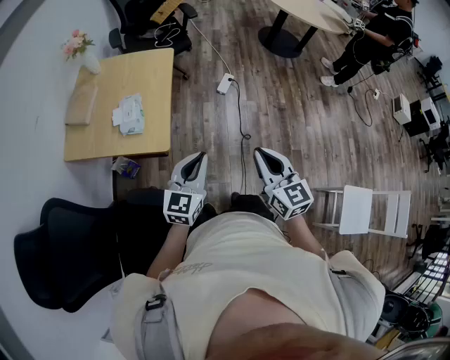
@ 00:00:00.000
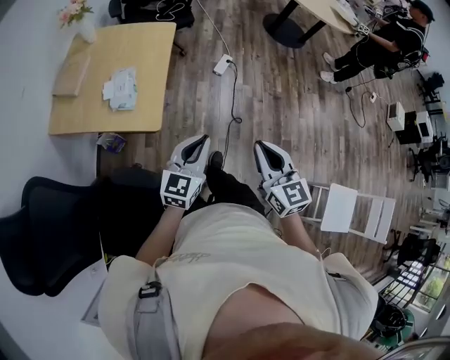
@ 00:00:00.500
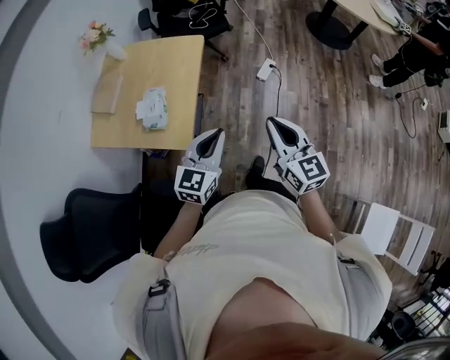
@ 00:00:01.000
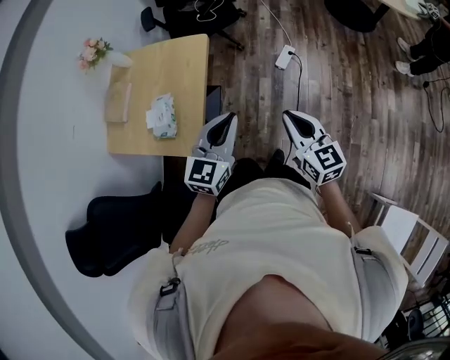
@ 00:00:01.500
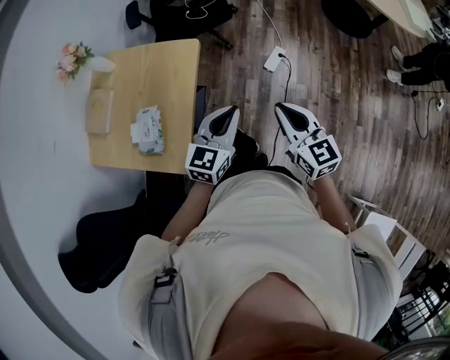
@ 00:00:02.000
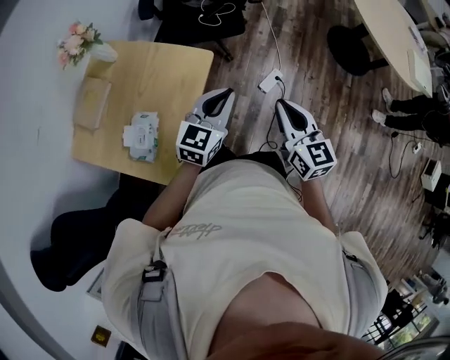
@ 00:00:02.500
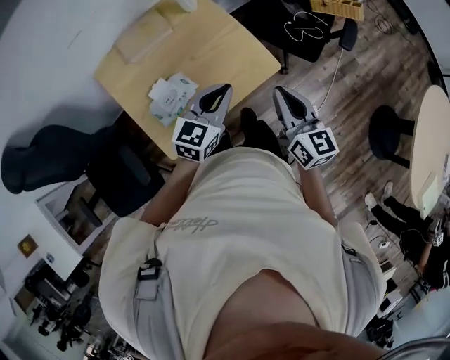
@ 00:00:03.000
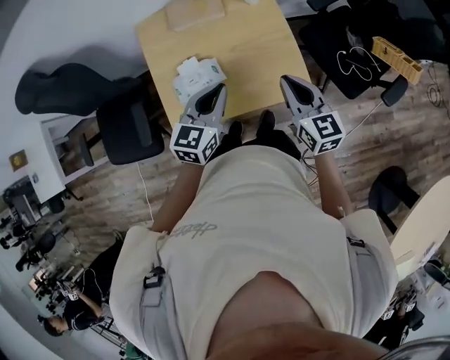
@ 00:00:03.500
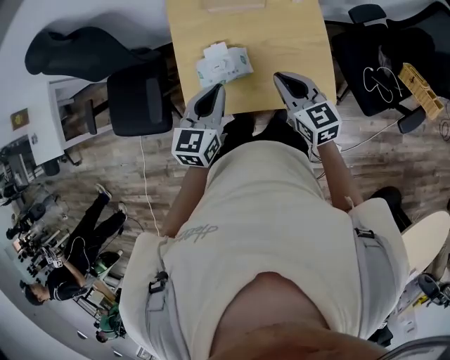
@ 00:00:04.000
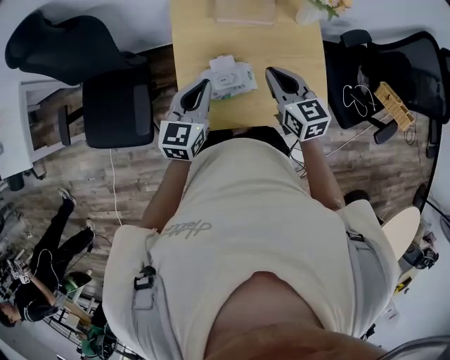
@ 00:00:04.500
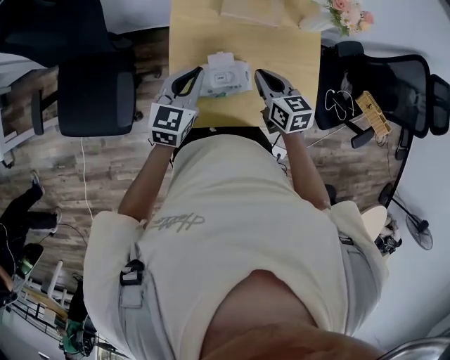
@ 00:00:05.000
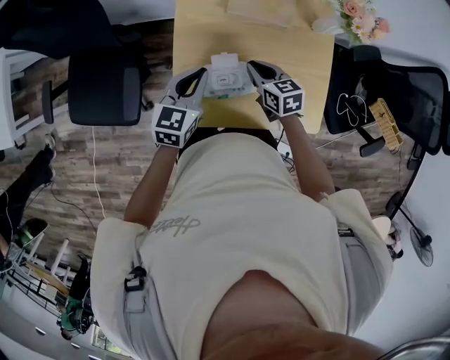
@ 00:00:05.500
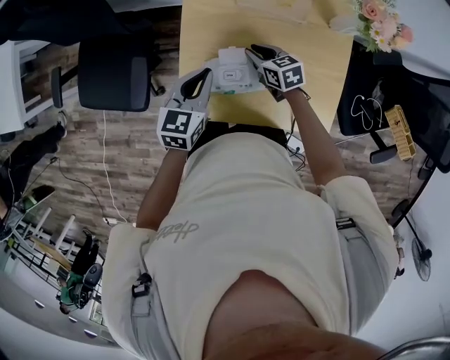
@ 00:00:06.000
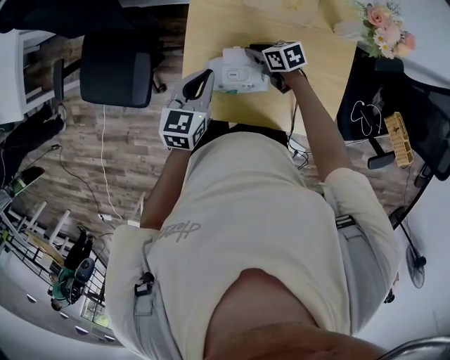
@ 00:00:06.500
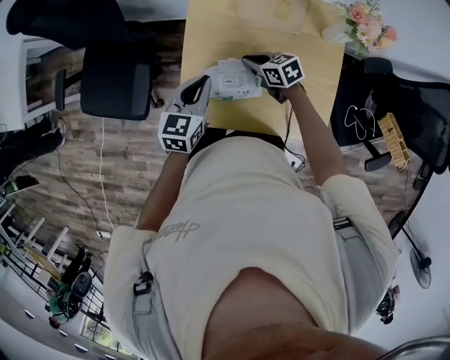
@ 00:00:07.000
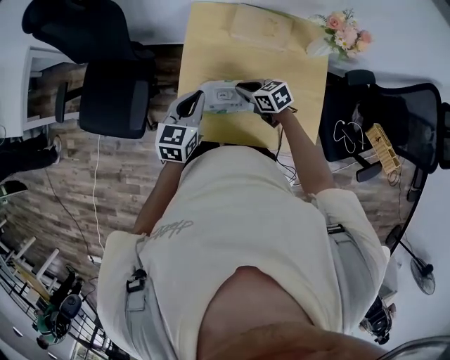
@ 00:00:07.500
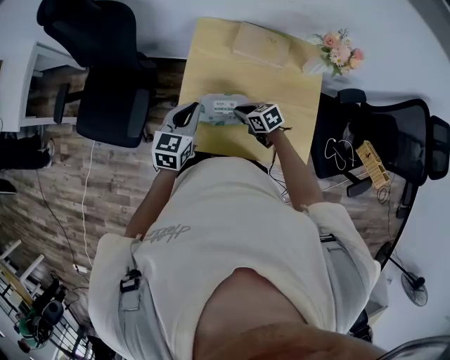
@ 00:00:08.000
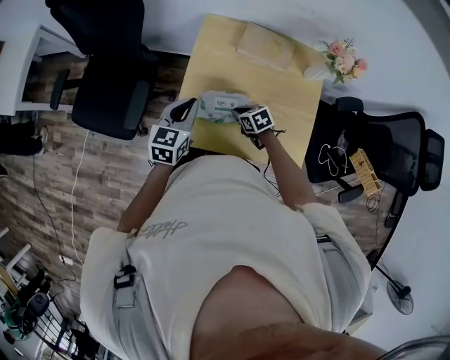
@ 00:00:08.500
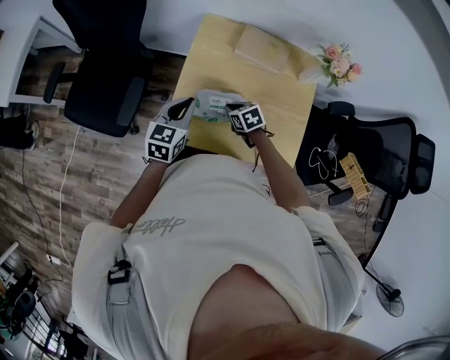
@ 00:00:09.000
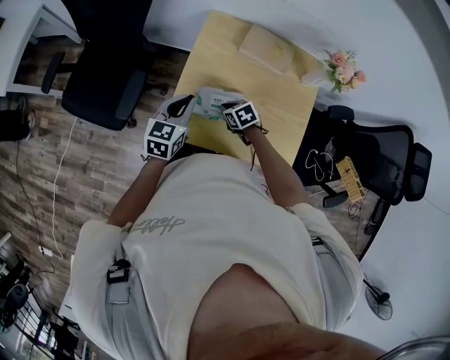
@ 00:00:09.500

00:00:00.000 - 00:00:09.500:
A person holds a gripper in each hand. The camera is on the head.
00:00:00.000 - 00:00:02.000: Both grippers travel together forward, approximately 40 cm.
00:00:02.000 - 00:00:04.000: The left gripper ends up about 30 cm from where it was, and changes its angle by some 90 degrees; the right gripper changes place by roughly 40 cm, and swivels about 80 degrees.
00:00:04.000 - 00:00:05.500: The grippers both shift forward, to the left and downward by about 20 cm. The right gripper swivels about 20 degrees.
00:00:05.500 - 00:00:07.500: The left gripper changes place by roughly 5 cm. The right gripper moves approximately 10 cm downward and comes back, and swivels some 20 degrees.
00:00:07.500 - 00:00:09.500: The right gripper shifts roughly 5 cm downward, and rotates roughly 20 degrees.

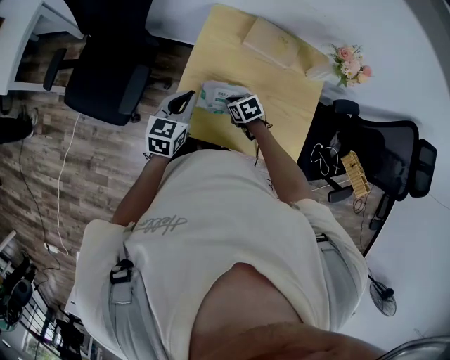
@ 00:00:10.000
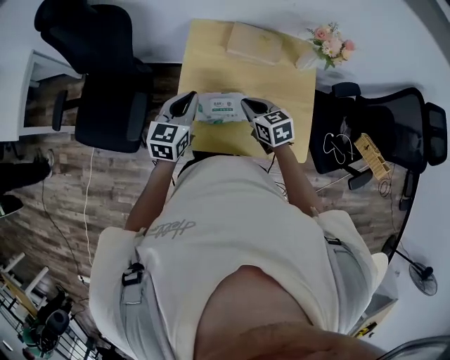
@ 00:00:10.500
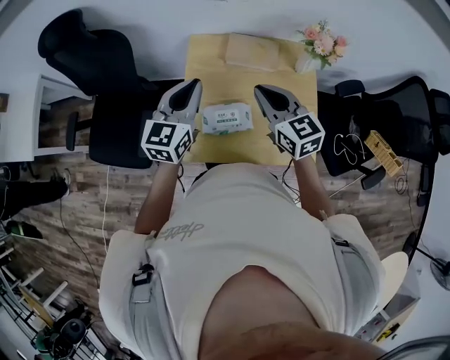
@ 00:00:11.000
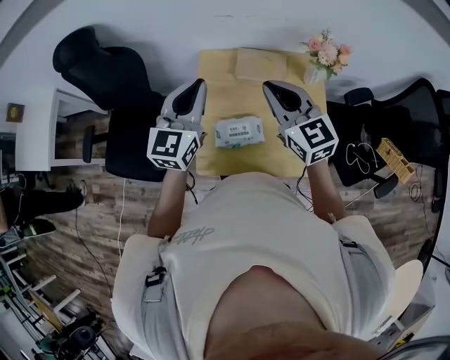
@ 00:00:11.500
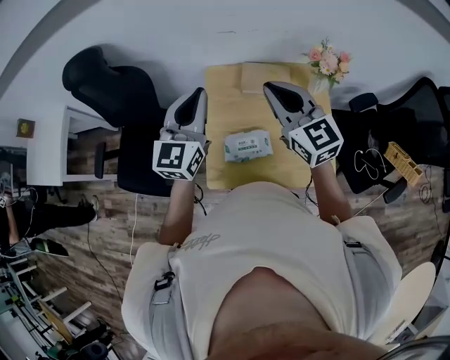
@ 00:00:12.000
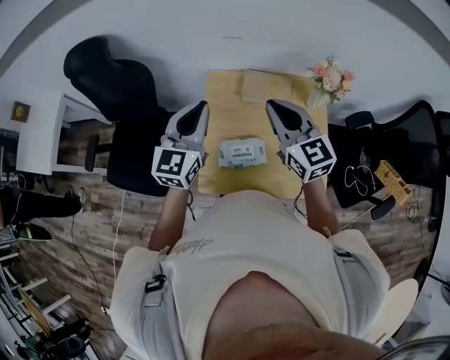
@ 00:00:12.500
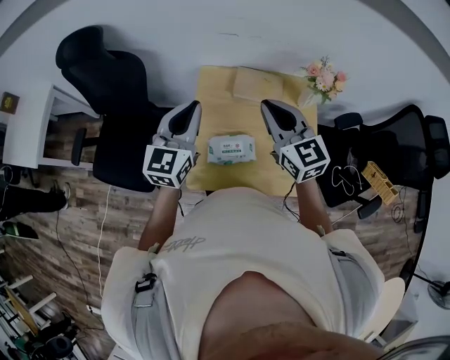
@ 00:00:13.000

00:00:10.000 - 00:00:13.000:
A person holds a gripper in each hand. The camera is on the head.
00:00:10.000 - 00:00:11.500: The right gripper is displaced upward by about 40 cm, and tilts its fingers about 50 degrees upward; the left gripper travels upward by approximately 25 cm, and rotates approximately 30 degrees.
00:00:11.500 - 00:00:13.000: The grippers stay close to where they were, moving slightly.

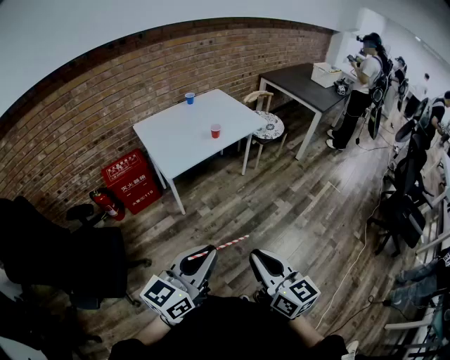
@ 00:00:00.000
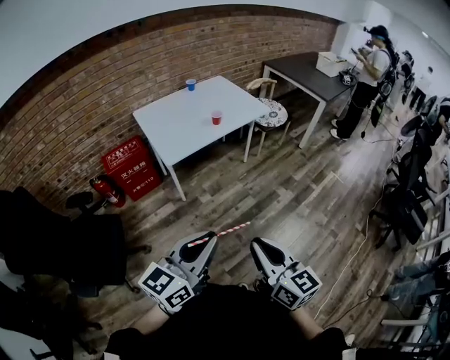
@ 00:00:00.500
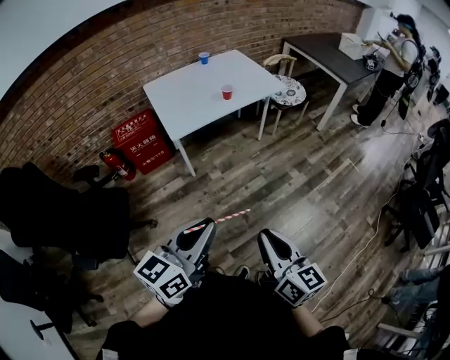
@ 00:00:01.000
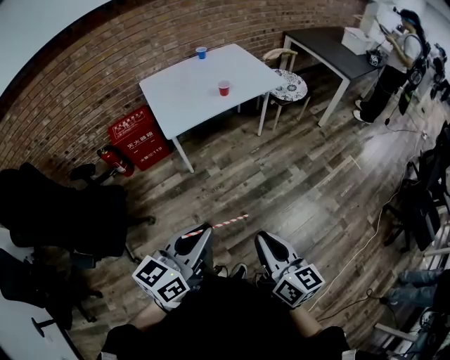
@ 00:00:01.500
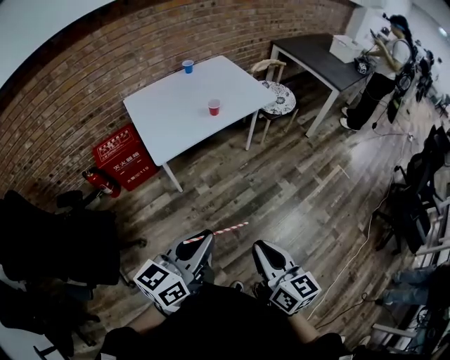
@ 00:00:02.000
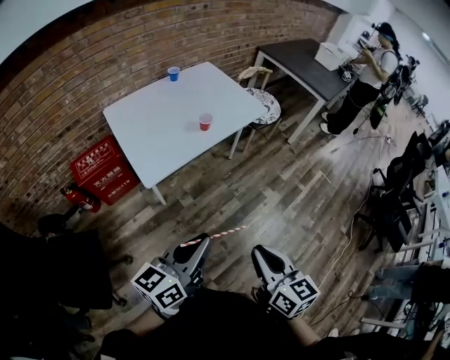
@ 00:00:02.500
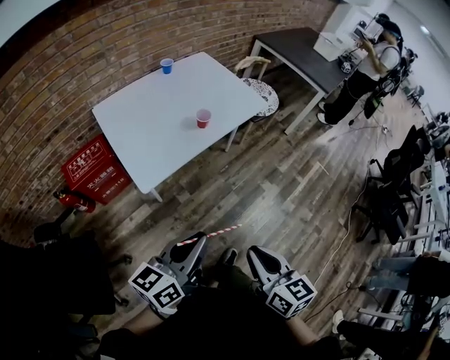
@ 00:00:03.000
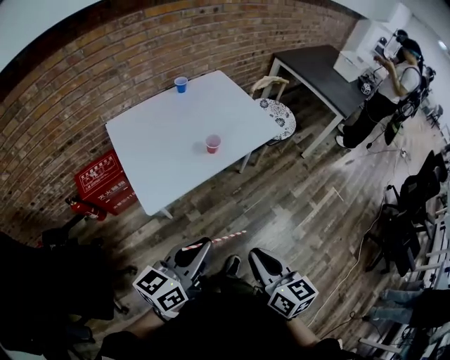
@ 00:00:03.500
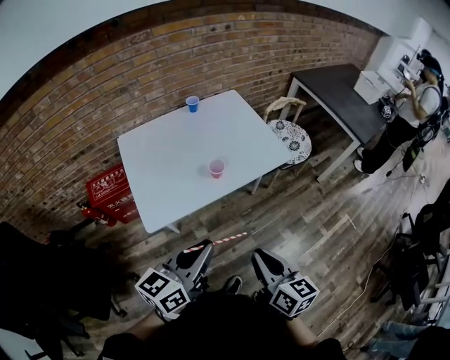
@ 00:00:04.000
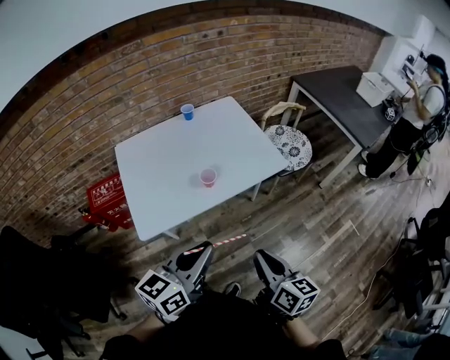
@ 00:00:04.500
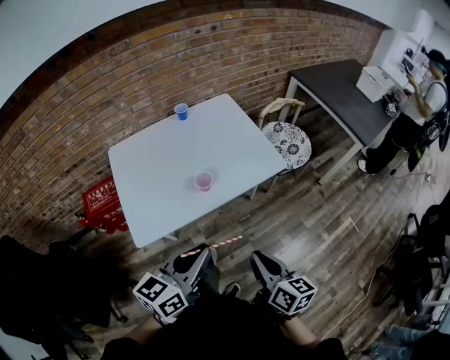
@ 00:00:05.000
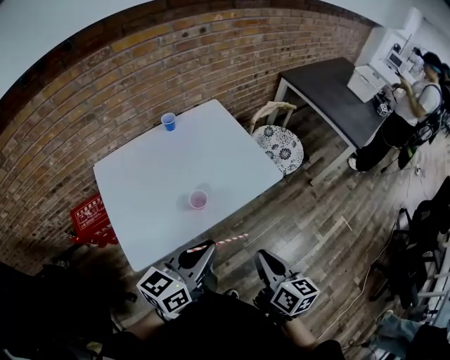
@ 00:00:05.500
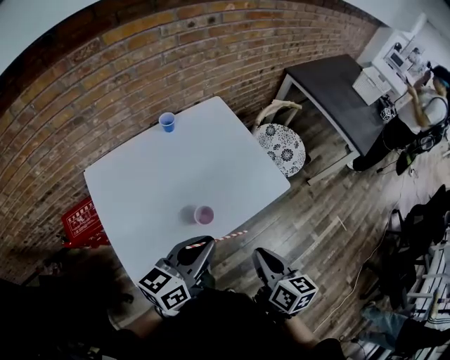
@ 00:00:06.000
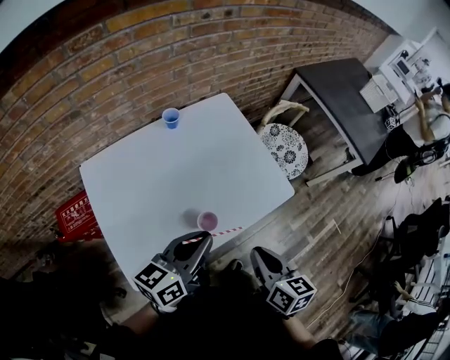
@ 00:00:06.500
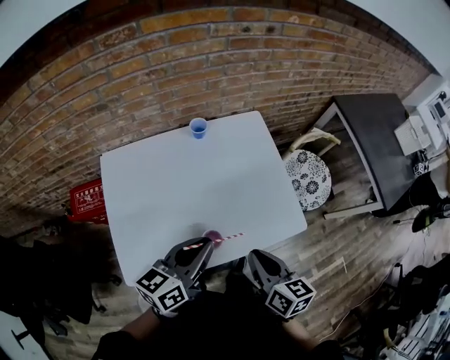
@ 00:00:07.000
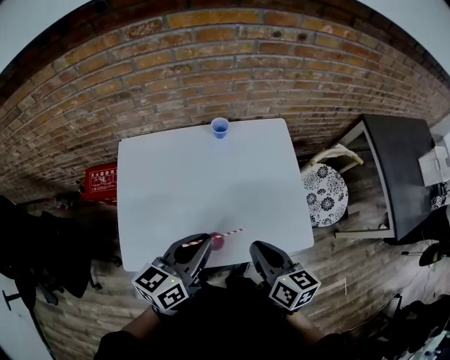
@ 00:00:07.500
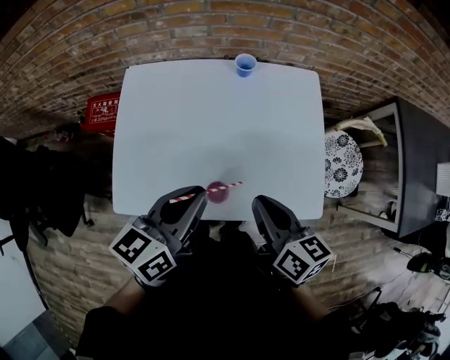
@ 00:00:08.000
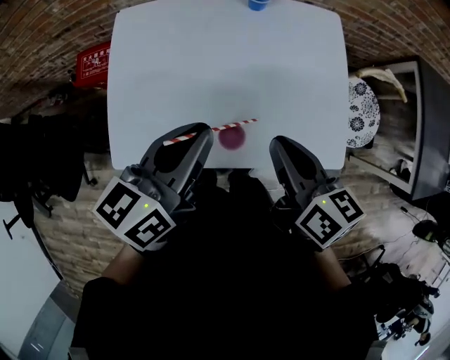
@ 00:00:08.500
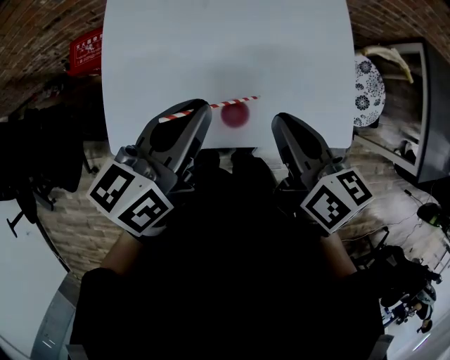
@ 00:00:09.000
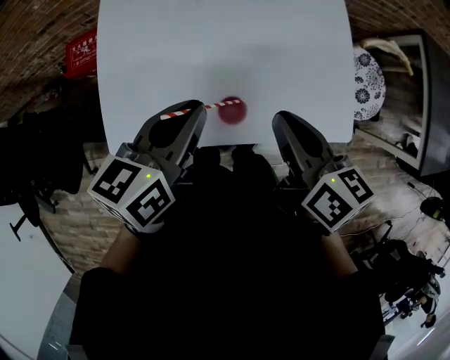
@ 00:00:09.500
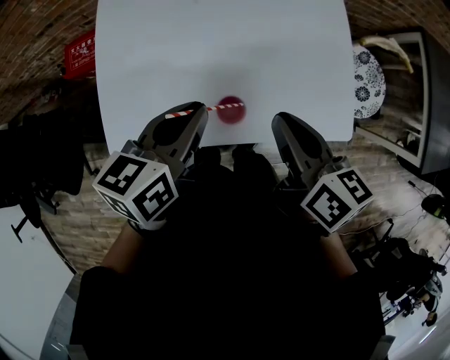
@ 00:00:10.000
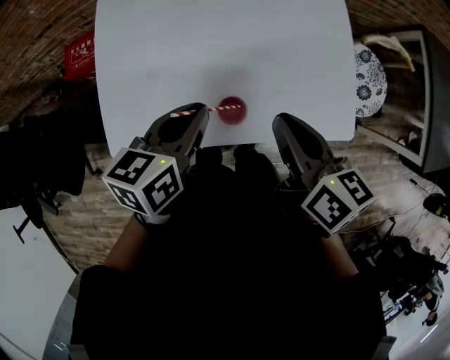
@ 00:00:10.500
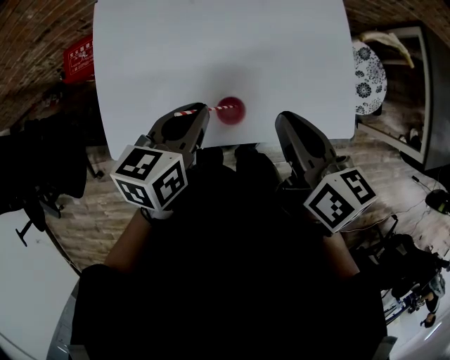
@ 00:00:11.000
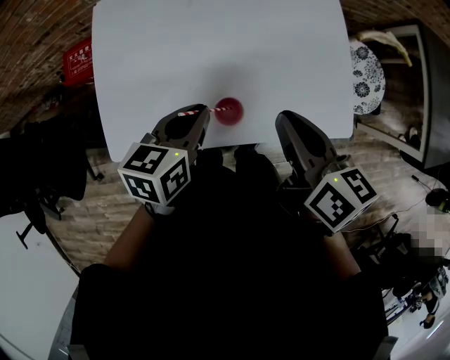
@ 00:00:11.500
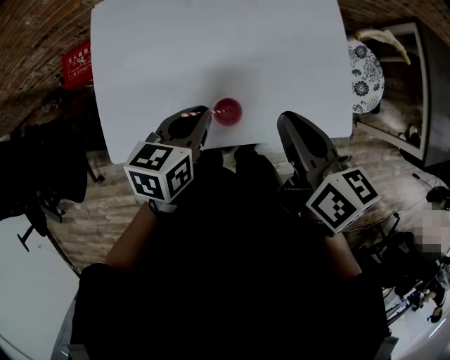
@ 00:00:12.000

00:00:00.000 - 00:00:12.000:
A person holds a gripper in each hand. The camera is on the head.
00:00:00.000 - 00:00:02.000: The right gripper goes some 15 cm forward, downward and to the right, while the left gripper heads forward, covering some 15 cm.
00:00:02.000 - 00:00:04.000: The two grippers go approximately 35 cm forward.
00:00:04.000 - 00:00:06.000: The two grippers go about 30 cm forward.
00:00:06.000 - 00:00:08.000: The left gripper ends up some 10 cm from where it was, and rotates approximately 40 degrees. The right gripper shifts by some 20 cm, and turns by approximately 40 degrees.
00:00:08.000 - 00:00:10.000: The left gripper moves downward, some 10 cm.
00:00:10.000 - 00:00:12.000: The left gripper is displaced downward by about 10 cm.

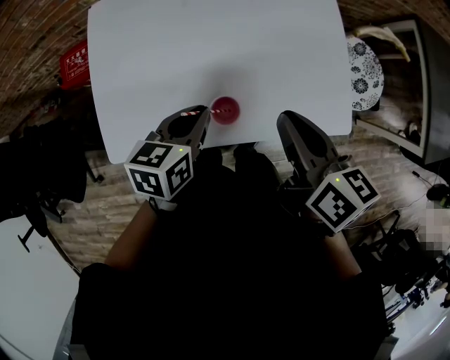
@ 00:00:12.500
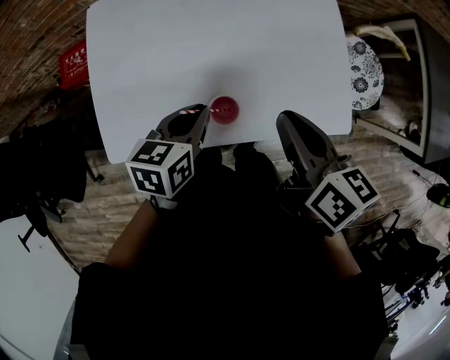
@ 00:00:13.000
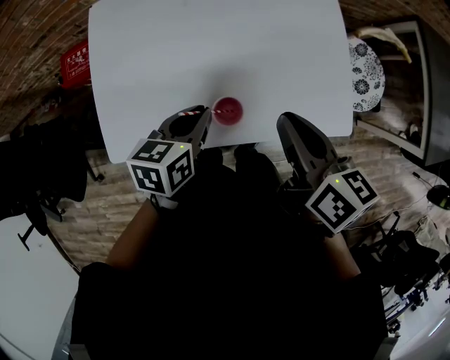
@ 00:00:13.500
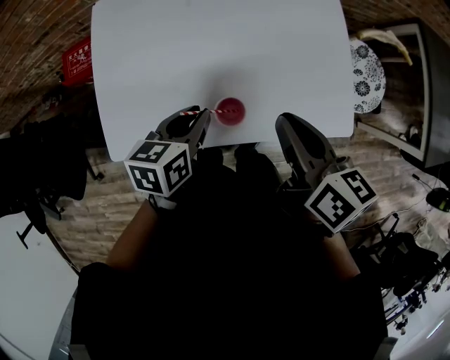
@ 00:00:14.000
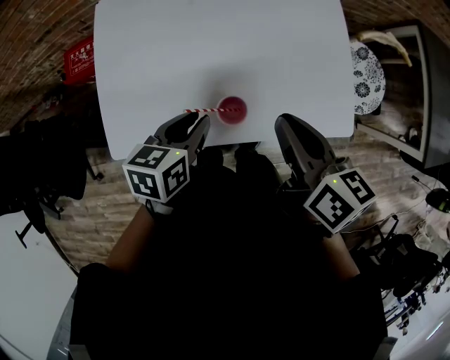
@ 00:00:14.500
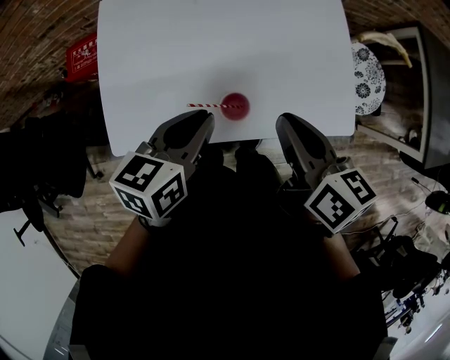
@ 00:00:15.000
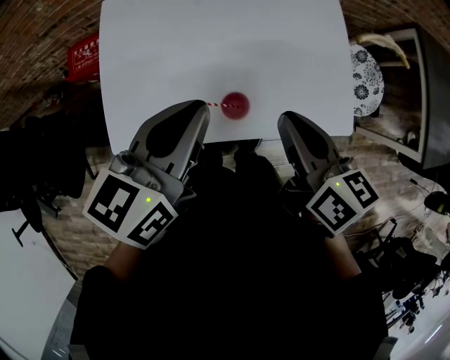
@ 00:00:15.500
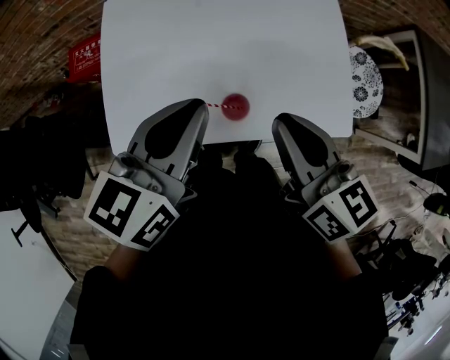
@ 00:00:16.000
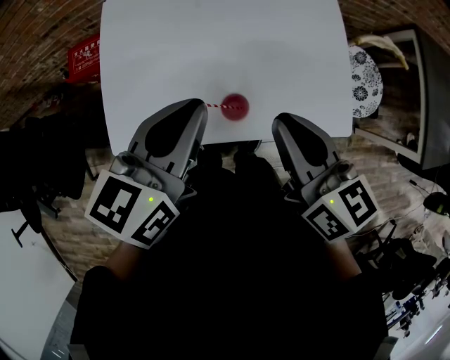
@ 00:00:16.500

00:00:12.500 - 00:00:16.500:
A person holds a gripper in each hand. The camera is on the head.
00:00:12.500 - 00:00:14.500: The grippers stay close to where they were, moving slightly.
00:00:14.500 - 00:00:16.500: The left gripper is displaced upward by roughly 15 cm, and swivels roughly 20 degrees. Meanwhile the right gripper shifts roughly 5 cm upward.
